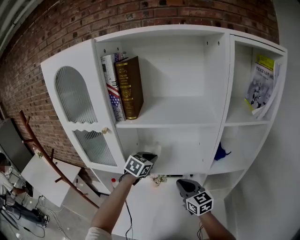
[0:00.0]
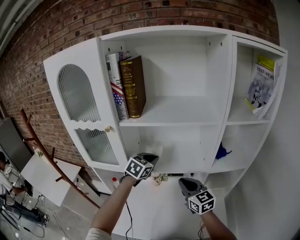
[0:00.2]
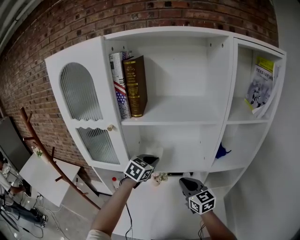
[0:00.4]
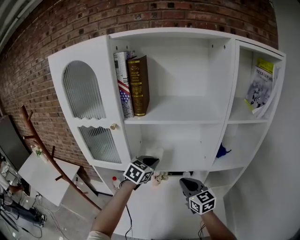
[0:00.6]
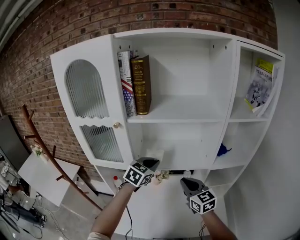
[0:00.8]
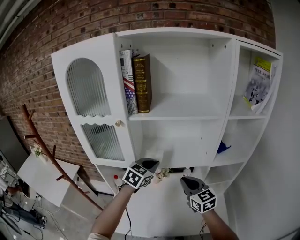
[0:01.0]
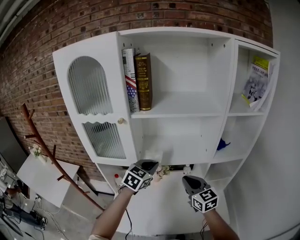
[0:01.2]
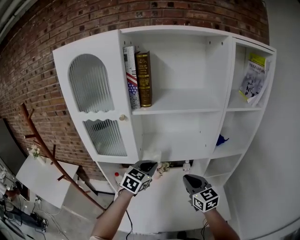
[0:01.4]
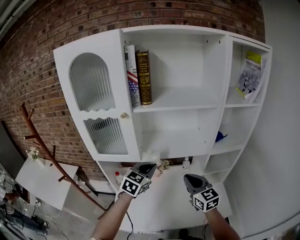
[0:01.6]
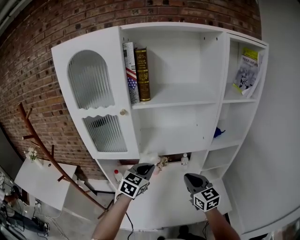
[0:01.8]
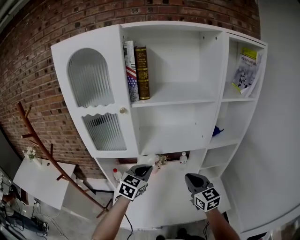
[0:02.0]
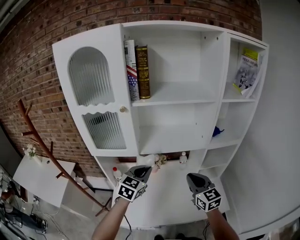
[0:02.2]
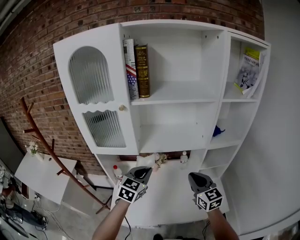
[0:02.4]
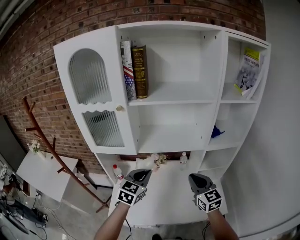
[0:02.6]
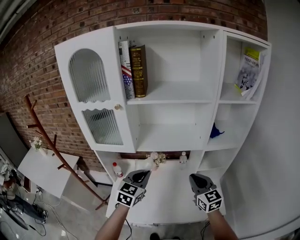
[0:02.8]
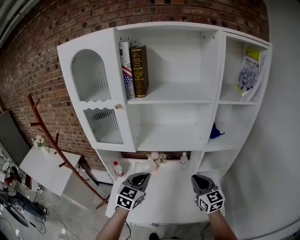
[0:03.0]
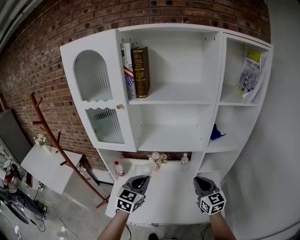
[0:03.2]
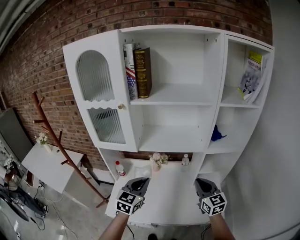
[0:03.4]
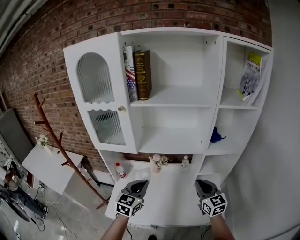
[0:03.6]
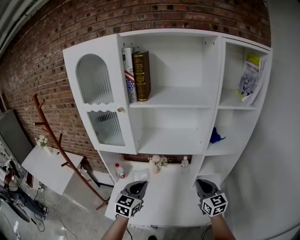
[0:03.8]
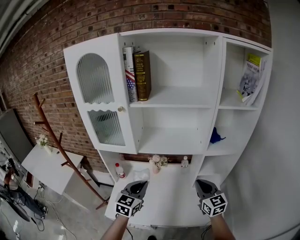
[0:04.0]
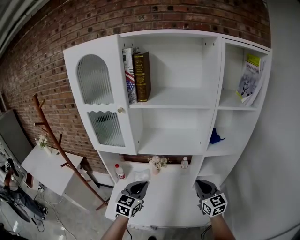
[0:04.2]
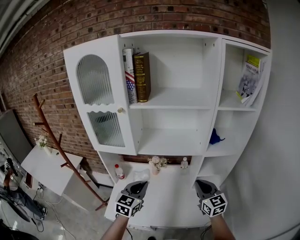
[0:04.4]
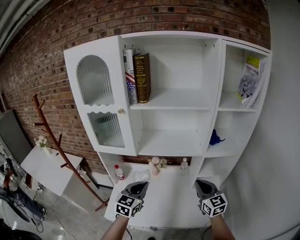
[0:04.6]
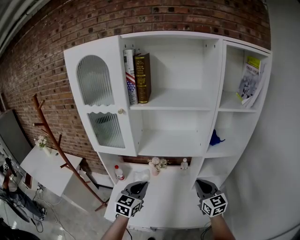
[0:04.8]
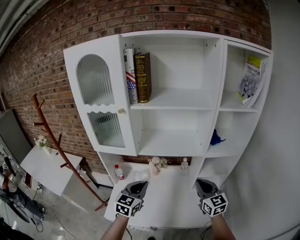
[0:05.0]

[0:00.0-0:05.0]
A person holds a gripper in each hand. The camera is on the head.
0:00.0 to 0:01.6: The right gripper is displaced backward by about 10 cm. The left gripper heads backward, covering some 15 cm.
0:01.6 to 0:03.4: The right gripper goes some 10 cm to the right. Meanwhile the left gripper shifts some 10 cm backward.
0:03.4 to 0:05.0: There are only small adjustments of the grippers.

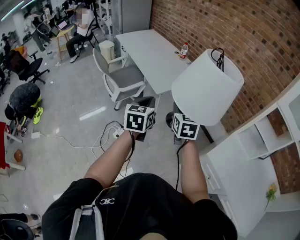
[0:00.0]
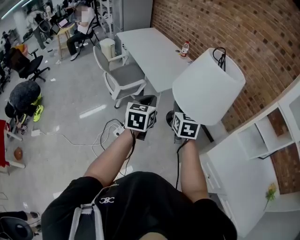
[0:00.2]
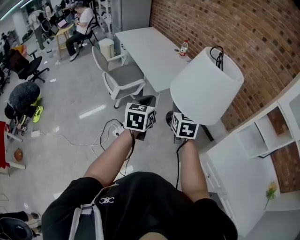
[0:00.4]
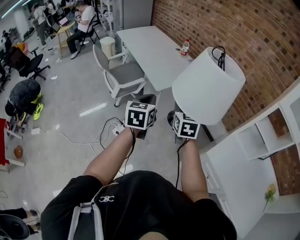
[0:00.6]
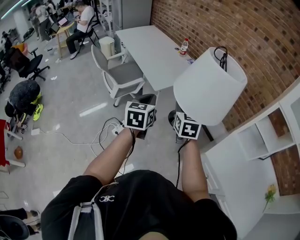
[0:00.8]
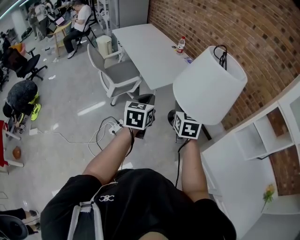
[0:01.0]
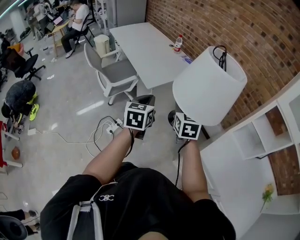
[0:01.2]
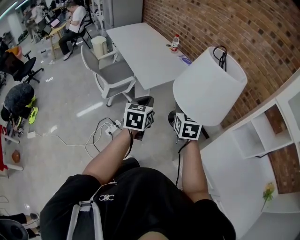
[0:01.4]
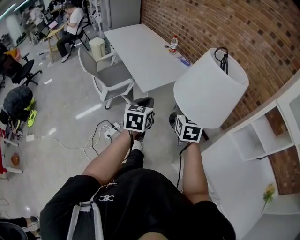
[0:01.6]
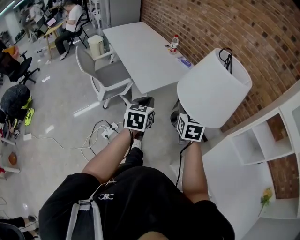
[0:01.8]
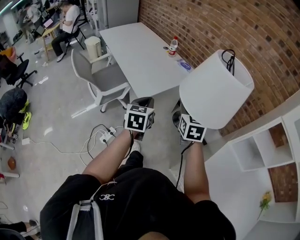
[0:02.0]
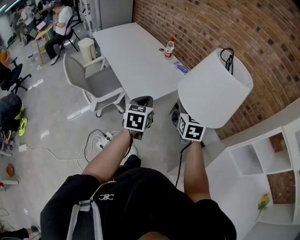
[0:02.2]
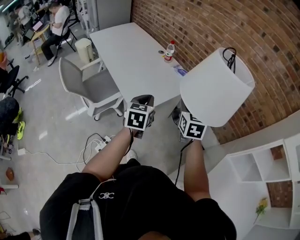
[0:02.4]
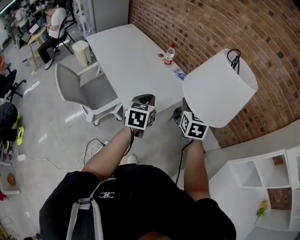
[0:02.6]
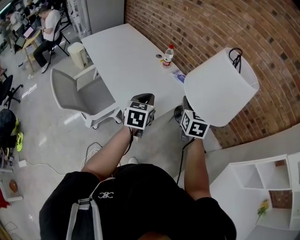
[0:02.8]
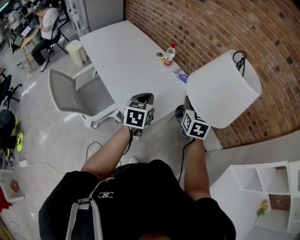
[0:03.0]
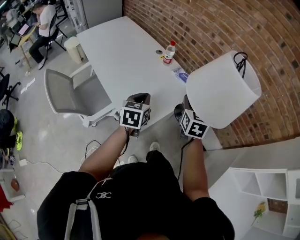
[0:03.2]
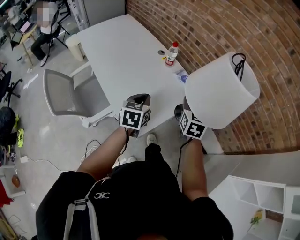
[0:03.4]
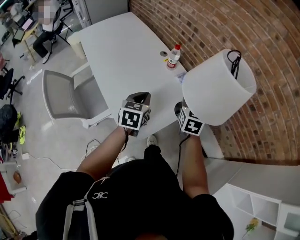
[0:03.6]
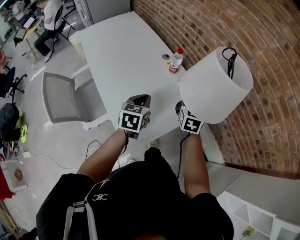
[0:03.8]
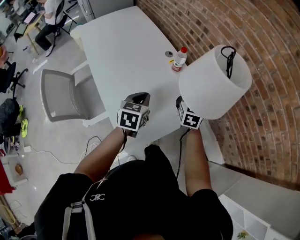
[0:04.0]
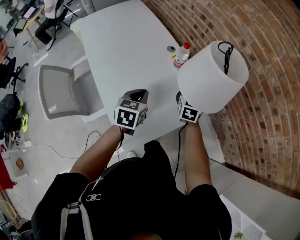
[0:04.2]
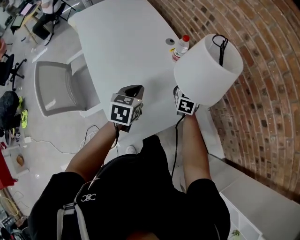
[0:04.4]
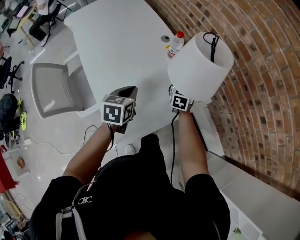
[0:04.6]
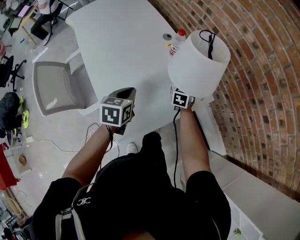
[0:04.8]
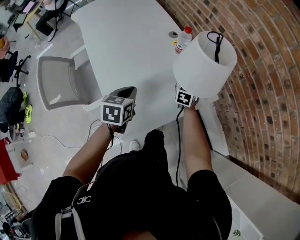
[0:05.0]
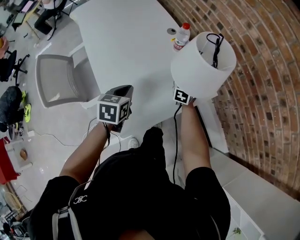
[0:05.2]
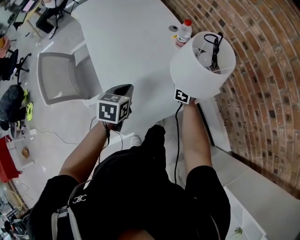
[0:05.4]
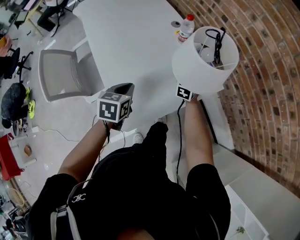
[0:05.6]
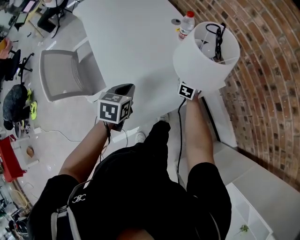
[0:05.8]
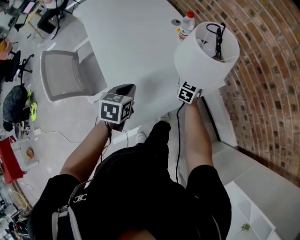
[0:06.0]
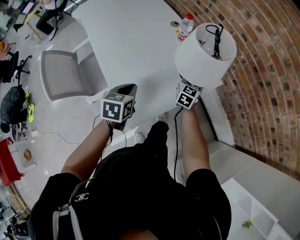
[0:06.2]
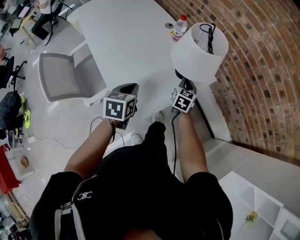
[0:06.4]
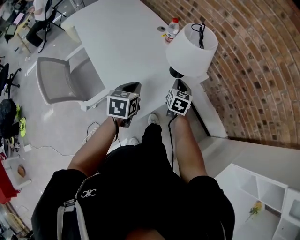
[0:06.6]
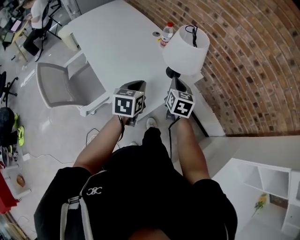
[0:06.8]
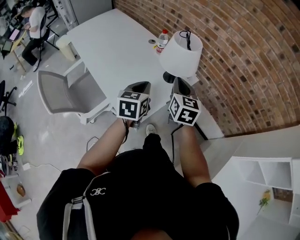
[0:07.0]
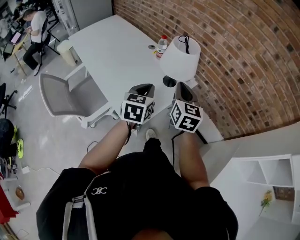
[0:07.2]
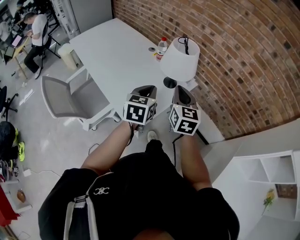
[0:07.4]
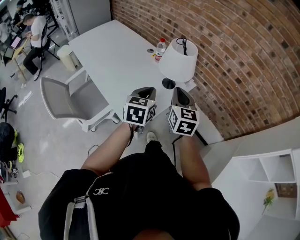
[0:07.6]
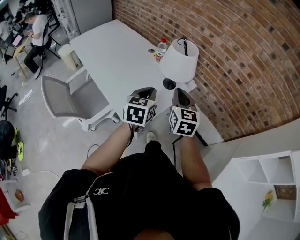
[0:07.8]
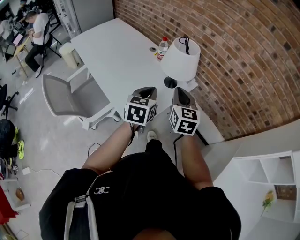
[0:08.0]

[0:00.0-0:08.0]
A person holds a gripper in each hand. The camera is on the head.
0:00.0 to 0:01.6: Both grippers travel together to the right and forward, roughly 10 cm.
0:01.6 to 0:03.2: Both grippers are carried forward, about 40 cm.
0:03.2 to 0:04.8: The right gripper travels forward and downward by about 35 cm. The left gripper shifts roughly 15 cm forward and downward.
0:04.8 to 0:06.4: Both grippers travel together backward, some 10 cm. The right gripper closes up.
0:06.4 to 0:08.0: The right gripper heads upward and backward, covering some 30 cm; the left gripper travels upward and to the right by approximately 15 cm, and swivels roughly 20 degrees.

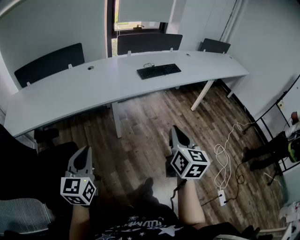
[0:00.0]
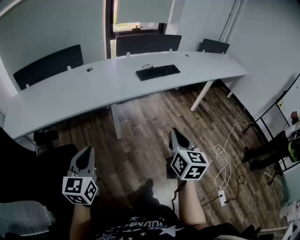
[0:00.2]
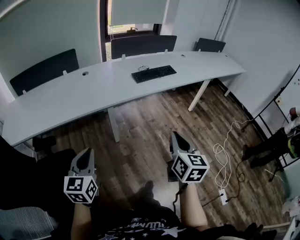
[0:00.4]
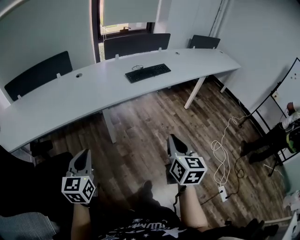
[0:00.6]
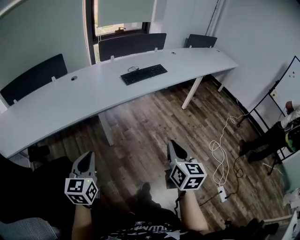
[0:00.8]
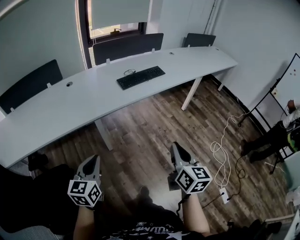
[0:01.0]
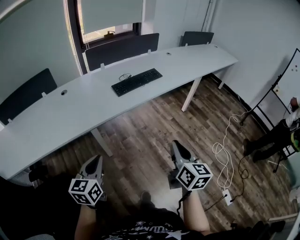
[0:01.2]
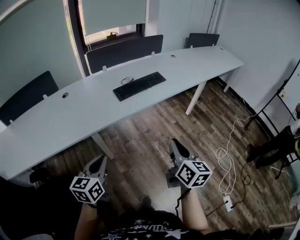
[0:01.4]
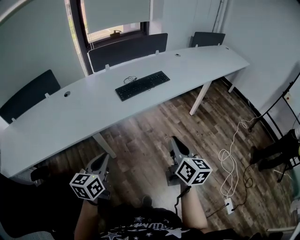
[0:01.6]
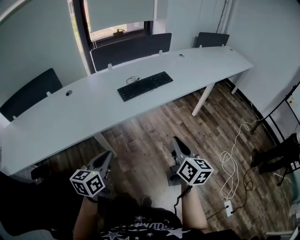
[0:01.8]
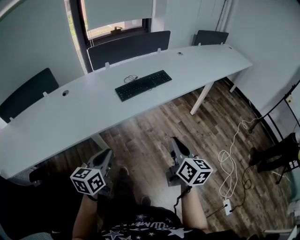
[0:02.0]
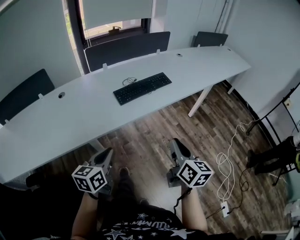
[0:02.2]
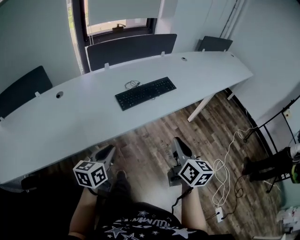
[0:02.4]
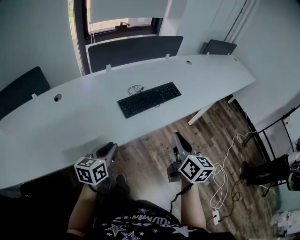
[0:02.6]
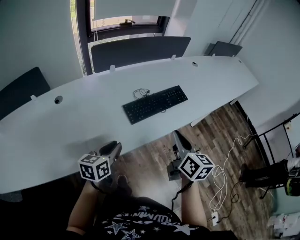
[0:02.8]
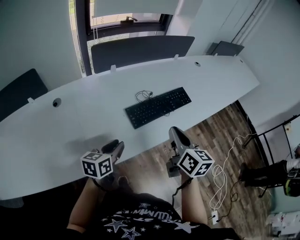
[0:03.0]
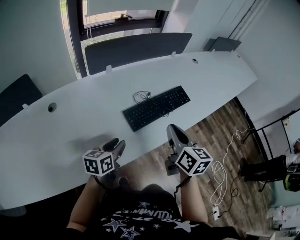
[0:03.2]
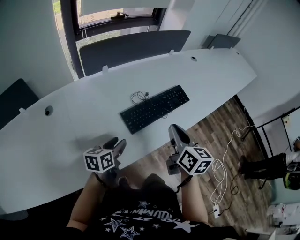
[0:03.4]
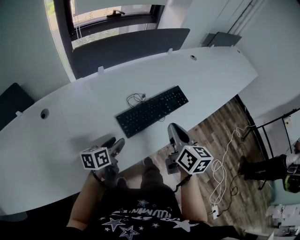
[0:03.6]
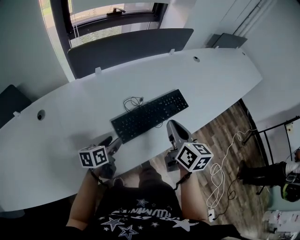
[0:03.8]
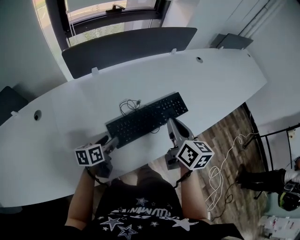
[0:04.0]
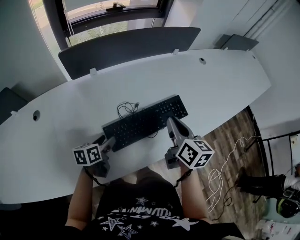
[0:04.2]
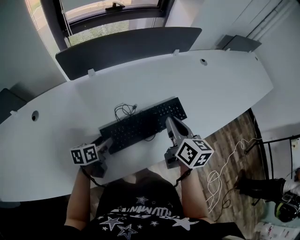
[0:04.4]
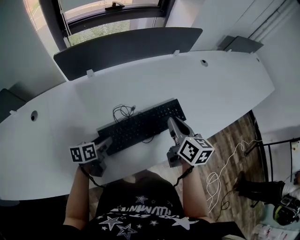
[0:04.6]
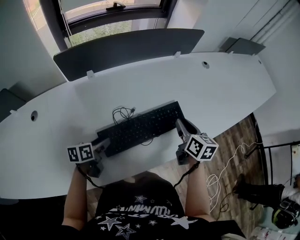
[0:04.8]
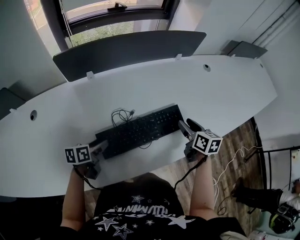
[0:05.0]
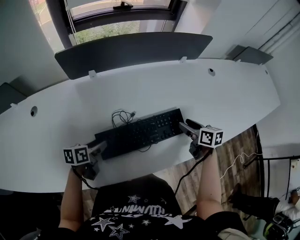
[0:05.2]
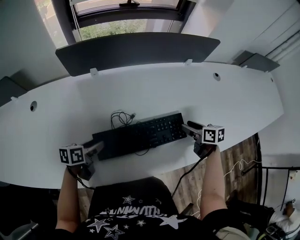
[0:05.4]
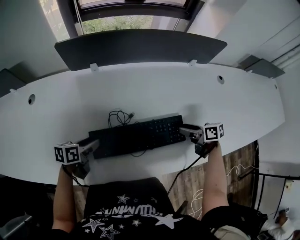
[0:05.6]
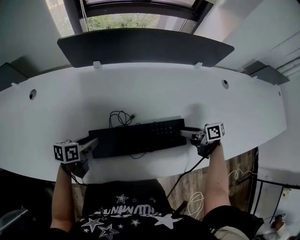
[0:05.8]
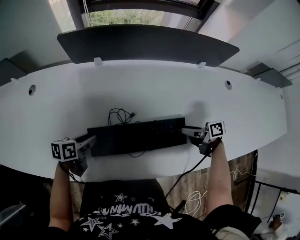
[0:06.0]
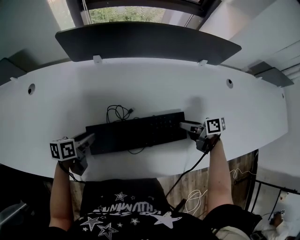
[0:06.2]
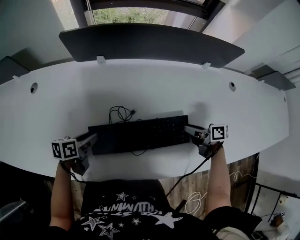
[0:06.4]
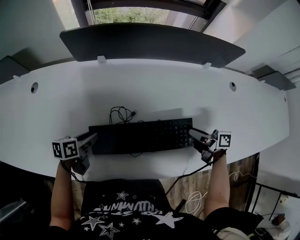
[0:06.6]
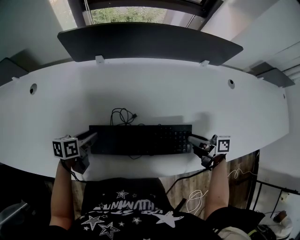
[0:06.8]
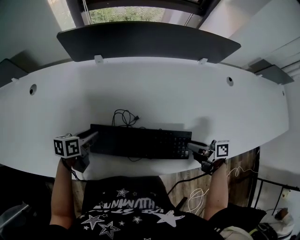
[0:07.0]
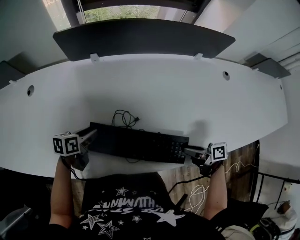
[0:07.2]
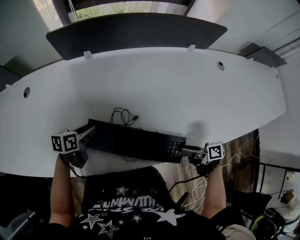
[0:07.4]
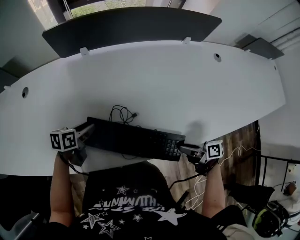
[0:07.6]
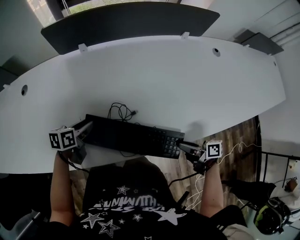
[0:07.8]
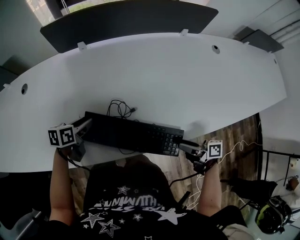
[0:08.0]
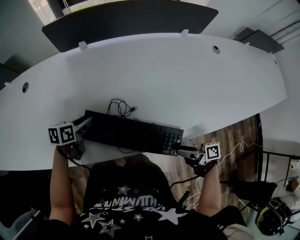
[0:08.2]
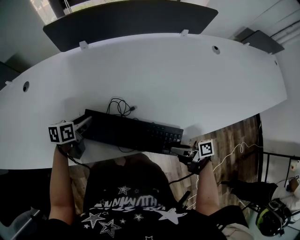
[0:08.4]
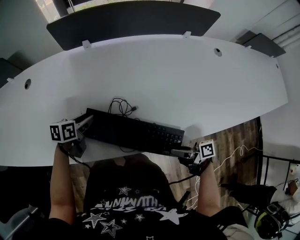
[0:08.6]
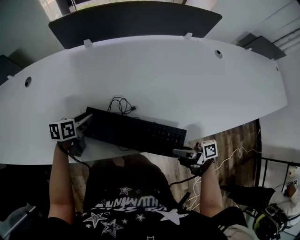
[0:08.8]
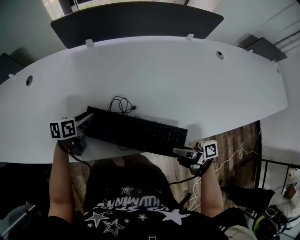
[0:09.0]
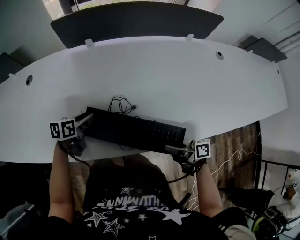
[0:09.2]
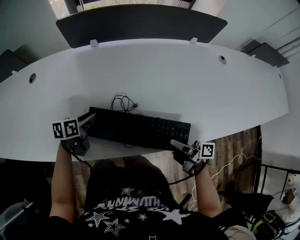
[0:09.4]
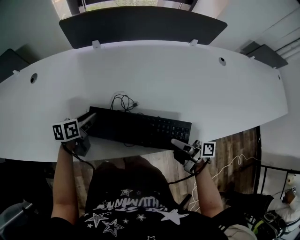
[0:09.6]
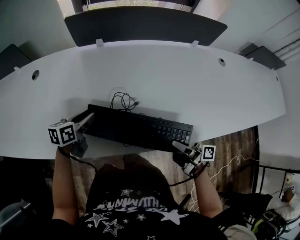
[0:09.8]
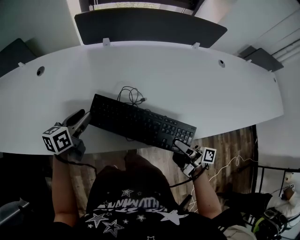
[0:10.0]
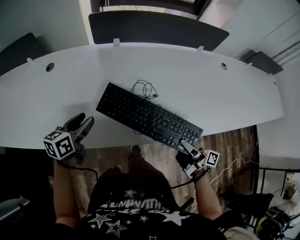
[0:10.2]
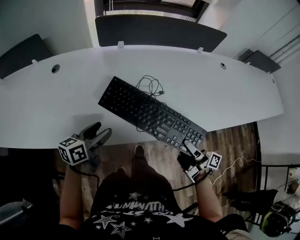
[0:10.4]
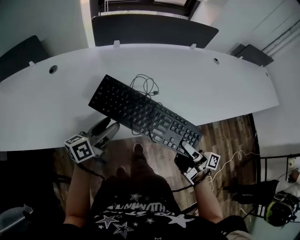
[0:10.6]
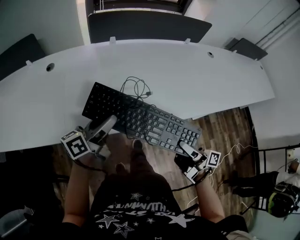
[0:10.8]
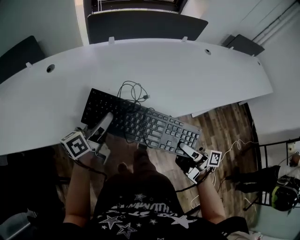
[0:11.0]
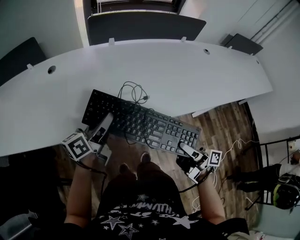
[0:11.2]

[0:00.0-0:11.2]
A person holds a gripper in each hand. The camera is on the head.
0:00.0 to 0:01.6: Both grippers move forward and to the right, about 25 cm. The left gripper changes its angle by approximately 20 degrees.
0:01.6 to 0:03.2: The right gripper shifts roughly 35 cm forward and to the left, while the left gripper travels forward by about 35 cm.
0:03.2 to 0:04.8: The left gripper travels forward and downward by roughly 15 cm, swivels roughly 20 degrees, and opens its fingers; the right gripper heads forward and to the right, covering some 30 cm.
0:04.8 to 0:06.4: The right gripper is displaced downward by some 10 cm, swivels roughly 60 degrees, and opens and closes again.
0:06.4 to 0:08.0: The right gripper moves backward, some 25 cm.
0:08.0 to 0:09.6: The right gripper moves forward, approximately 5 cm, and closes.
0:09.6 to 0:11.2: The left gripper heads upward, covering approximately 10 cm, moves some 10 cm to the left and comes back, tilts its fingers about 40 degrees upward, and opens and closes again, while the right gripper moves roughly 10 cm upward and comes back.
